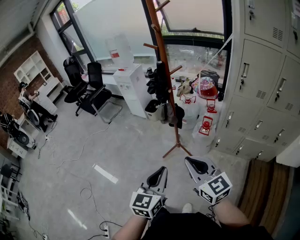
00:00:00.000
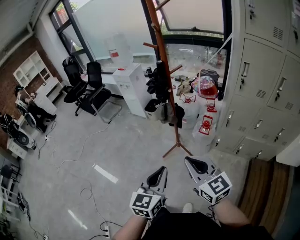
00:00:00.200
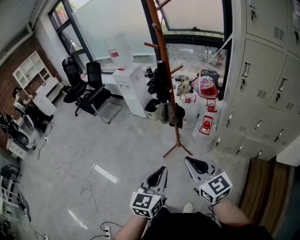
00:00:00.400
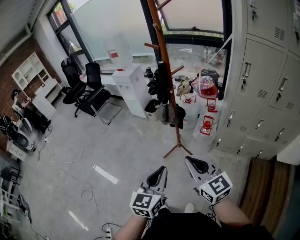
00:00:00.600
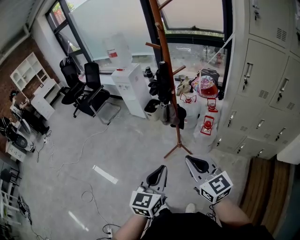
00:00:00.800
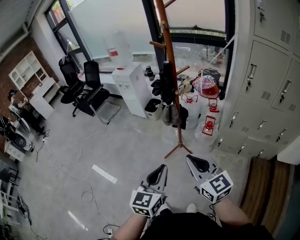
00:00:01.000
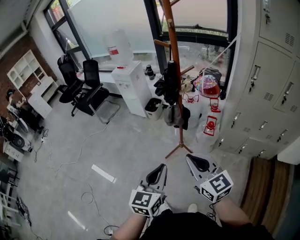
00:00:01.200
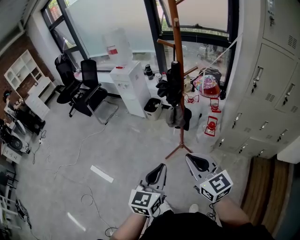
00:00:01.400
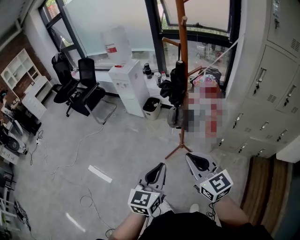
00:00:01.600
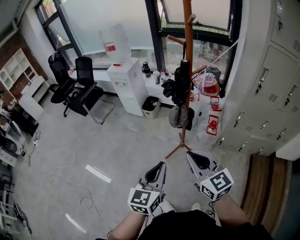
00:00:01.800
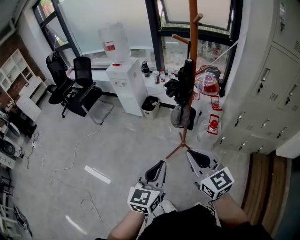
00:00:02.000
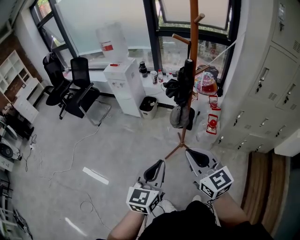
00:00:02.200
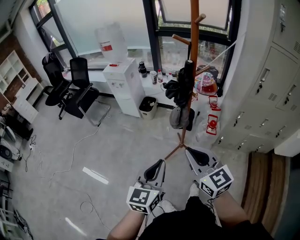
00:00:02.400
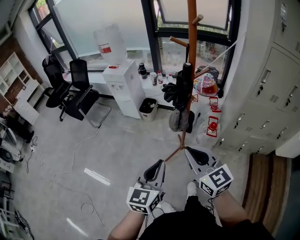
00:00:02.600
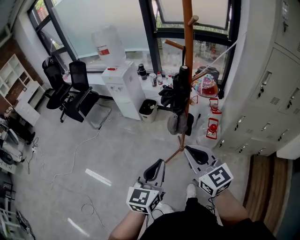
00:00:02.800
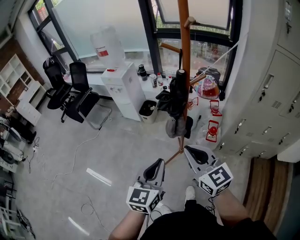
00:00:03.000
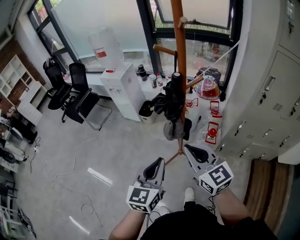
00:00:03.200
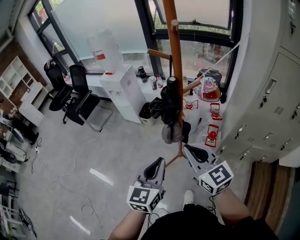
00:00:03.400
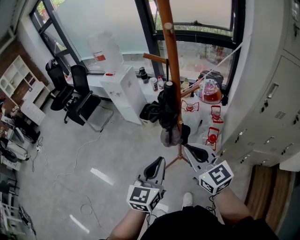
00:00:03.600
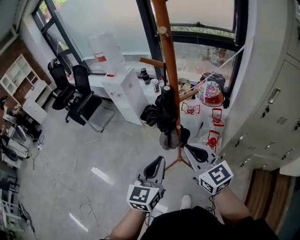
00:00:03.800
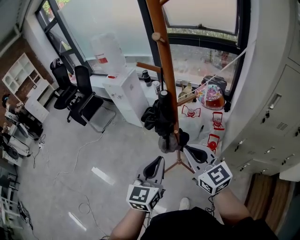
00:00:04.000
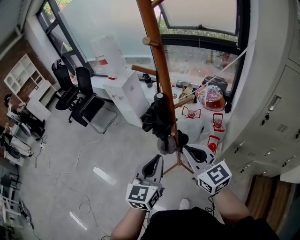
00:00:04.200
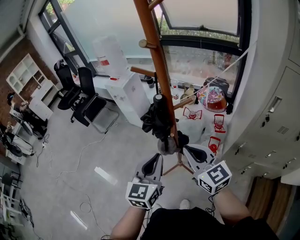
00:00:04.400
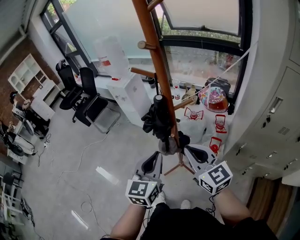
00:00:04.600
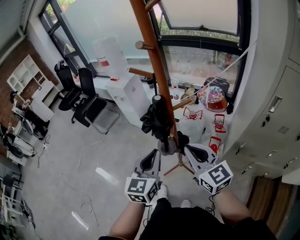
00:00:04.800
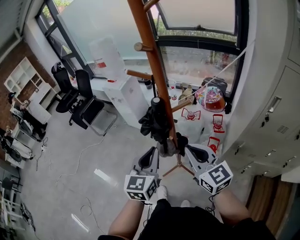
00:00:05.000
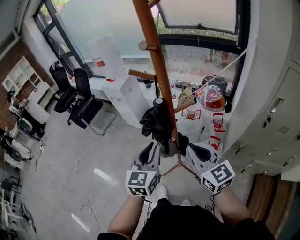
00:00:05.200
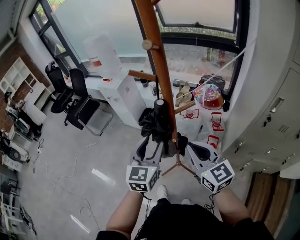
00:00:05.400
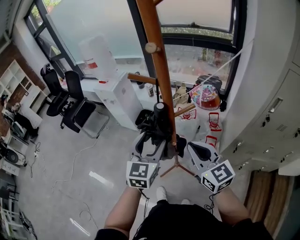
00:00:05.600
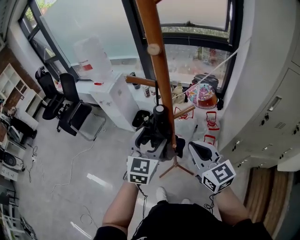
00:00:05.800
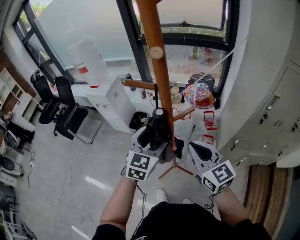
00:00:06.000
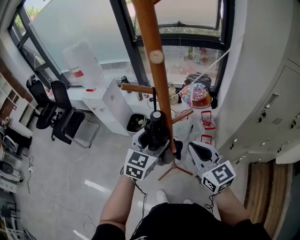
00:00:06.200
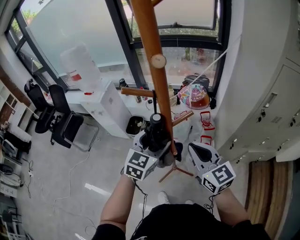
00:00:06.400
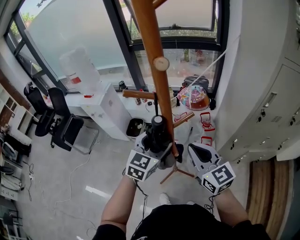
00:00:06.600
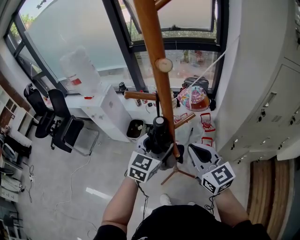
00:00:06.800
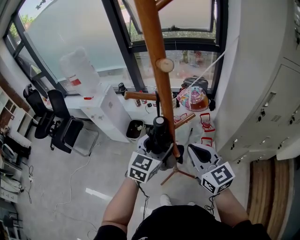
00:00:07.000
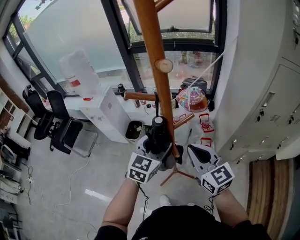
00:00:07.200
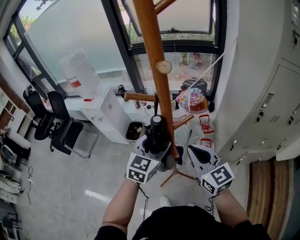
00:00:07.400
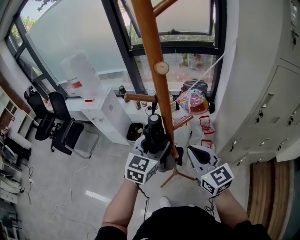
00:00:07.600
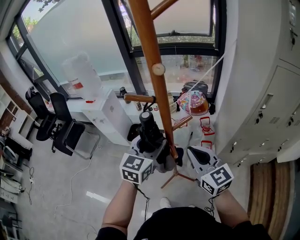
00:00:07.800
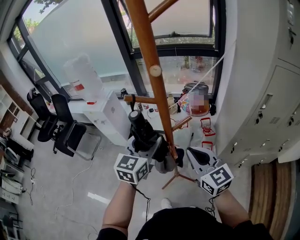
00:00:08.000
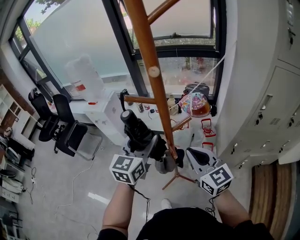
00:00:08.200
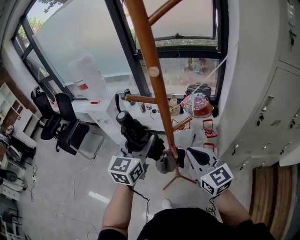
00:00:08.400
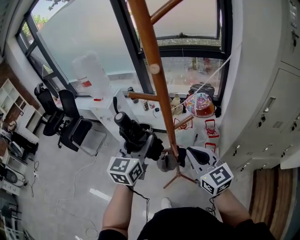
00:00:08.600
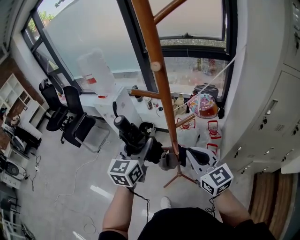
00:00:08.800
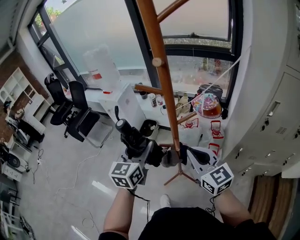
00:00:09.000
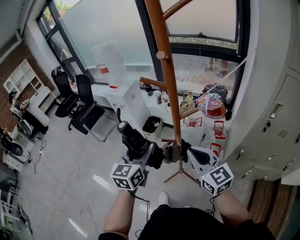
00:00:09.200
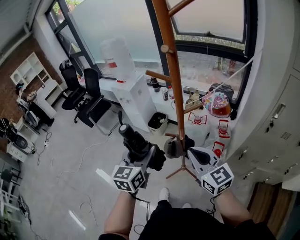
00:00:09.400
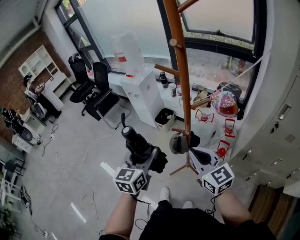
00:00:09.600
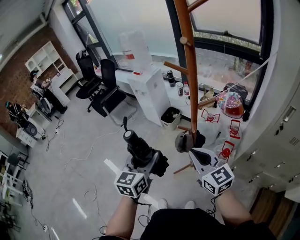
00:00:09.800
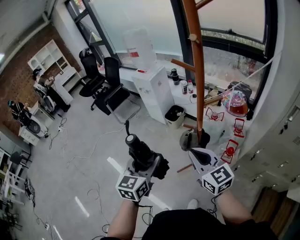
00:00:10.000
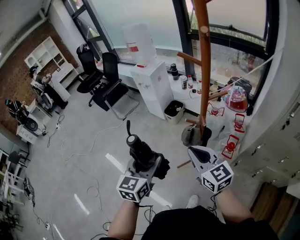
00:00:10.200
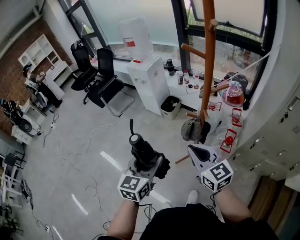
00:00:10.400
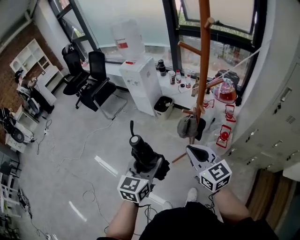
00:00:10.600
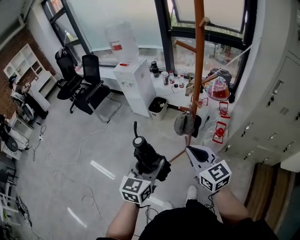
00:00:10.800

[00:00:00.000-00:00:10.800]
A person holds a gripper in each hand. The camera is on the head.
00:00:00.000 to 00:00:01.600: Both grippers travel together forward and to the left, roughly 15 cm.
00:00:01.600 to 00:00:03.000: Both grippers travel together forward, about 10 cm.
00:00:03.000 to 00:00:04.600: The right gripper moves to the right and forward, some 15 cm; the left gripper goes some 15 cm forward and to the right.
00:00:04.600 to 00:00:06.200: The right gripper goes some 5 cm forward. Meanwhile the left gripper travels forward by roughly 15 cm, rotates about 30 degrees, and opens up.
00:00:06.200 to 00:00:07.800: The grippers stay close to where they were, moving slightly.
00:00:07.800 to 00:00:09.200: The left gripper heads backward and to the left, covering approximately 10 cm, and turns by about 30 degrees.
00:00:09.200 to 00:00:10.800: The right gripper shifts roughly 20 cm to the left and backward. The left gripper moves backward and to the left, approximately 20 cm.

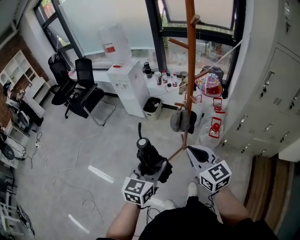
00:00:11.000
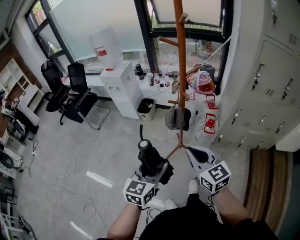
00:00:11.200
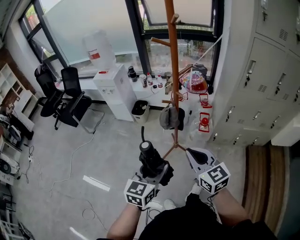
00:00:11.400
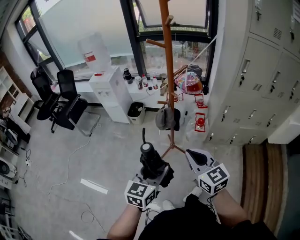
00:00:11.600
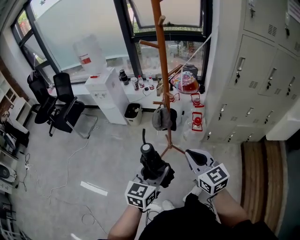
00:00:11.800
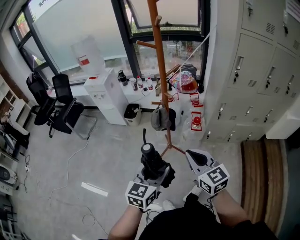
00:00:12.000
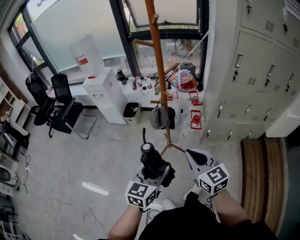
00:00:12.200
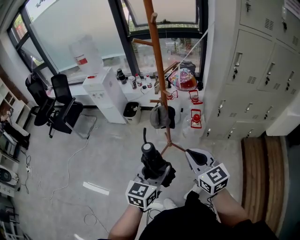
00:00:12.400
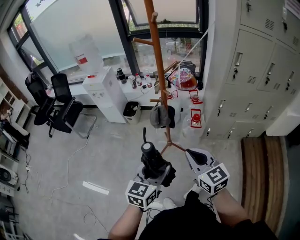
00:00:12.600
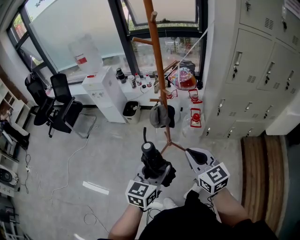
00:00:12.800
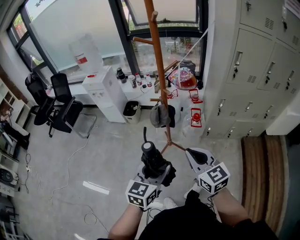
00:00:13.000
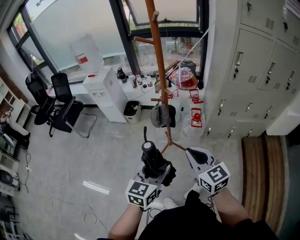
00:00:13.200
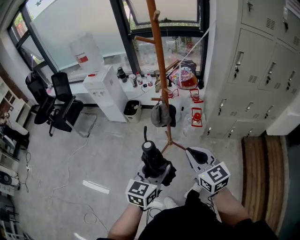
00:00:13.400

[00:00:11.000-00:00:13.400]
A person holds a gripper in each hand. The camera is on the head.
00:00:11.000 to 00:00:12.200: The left gripper heads to the right, covering approximately 5 cm. Meanwhile the right gripper goes roughly 10 cm to the right and backward.
00:00:12.200 to 00:00:13.400: Both grippers stay put.

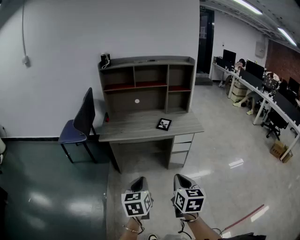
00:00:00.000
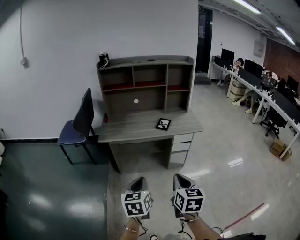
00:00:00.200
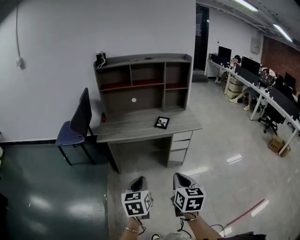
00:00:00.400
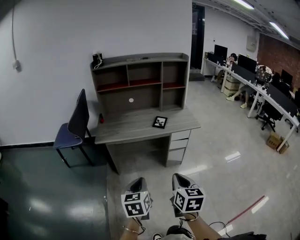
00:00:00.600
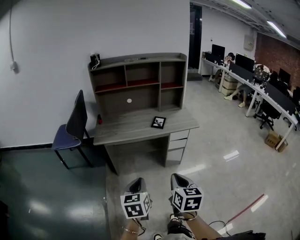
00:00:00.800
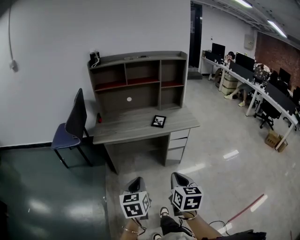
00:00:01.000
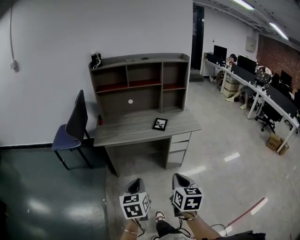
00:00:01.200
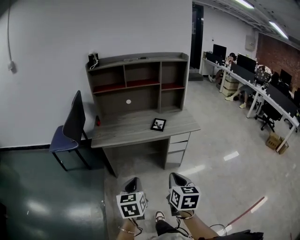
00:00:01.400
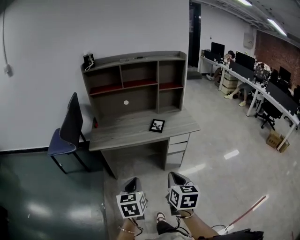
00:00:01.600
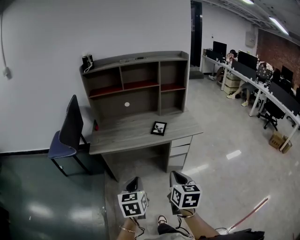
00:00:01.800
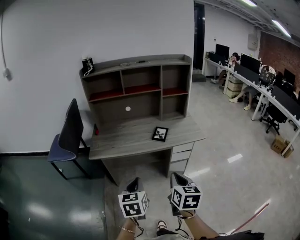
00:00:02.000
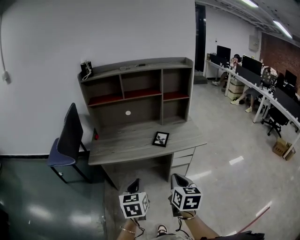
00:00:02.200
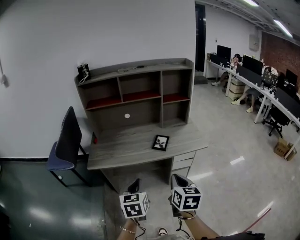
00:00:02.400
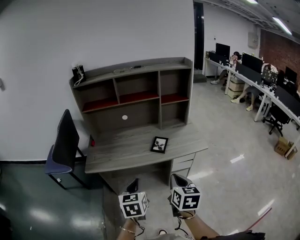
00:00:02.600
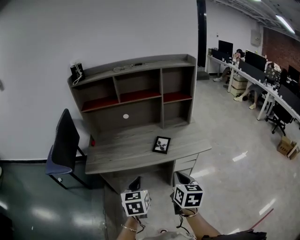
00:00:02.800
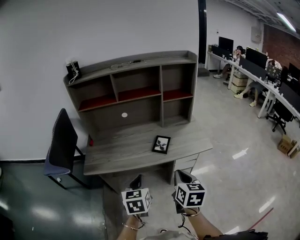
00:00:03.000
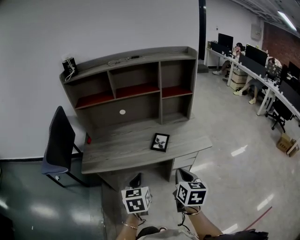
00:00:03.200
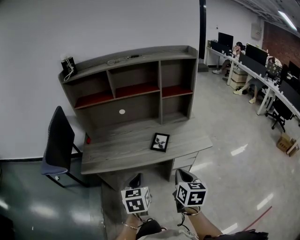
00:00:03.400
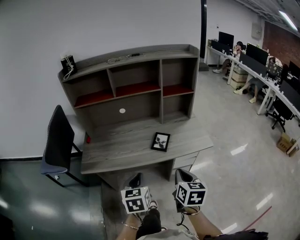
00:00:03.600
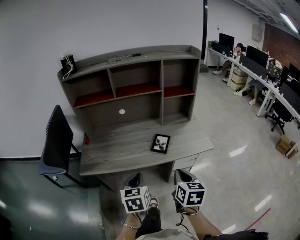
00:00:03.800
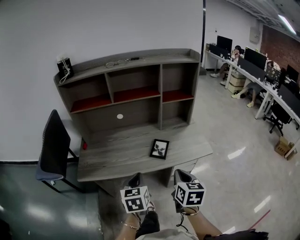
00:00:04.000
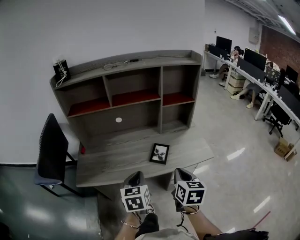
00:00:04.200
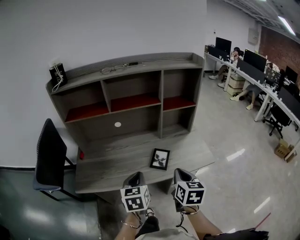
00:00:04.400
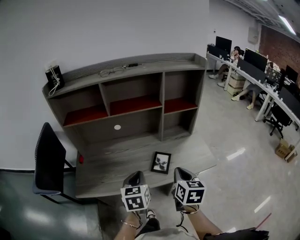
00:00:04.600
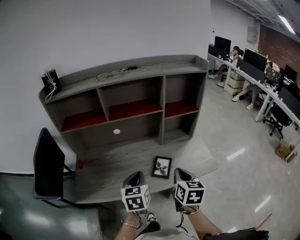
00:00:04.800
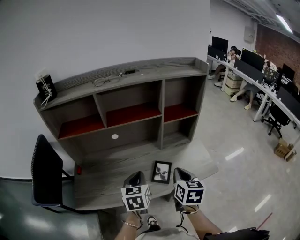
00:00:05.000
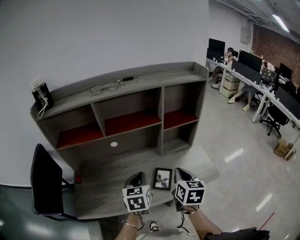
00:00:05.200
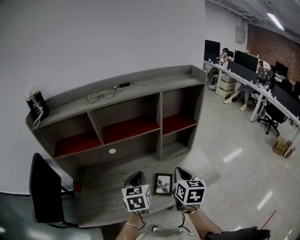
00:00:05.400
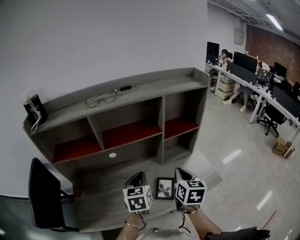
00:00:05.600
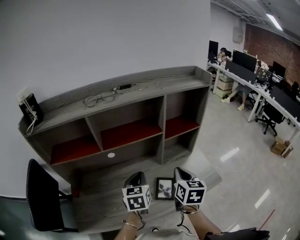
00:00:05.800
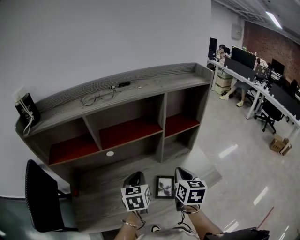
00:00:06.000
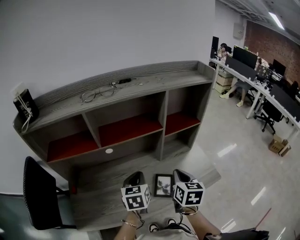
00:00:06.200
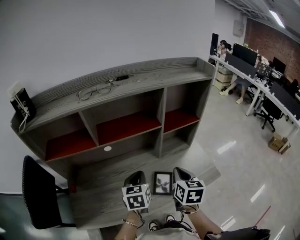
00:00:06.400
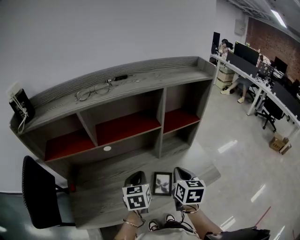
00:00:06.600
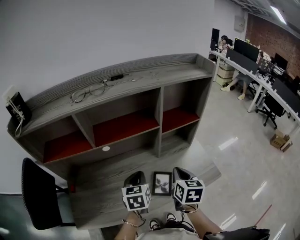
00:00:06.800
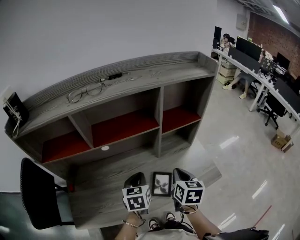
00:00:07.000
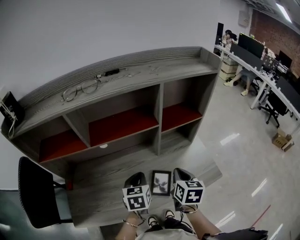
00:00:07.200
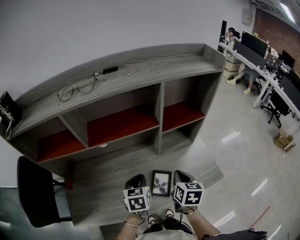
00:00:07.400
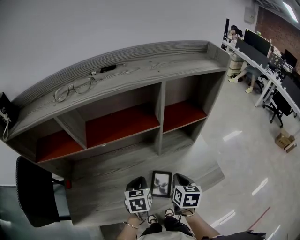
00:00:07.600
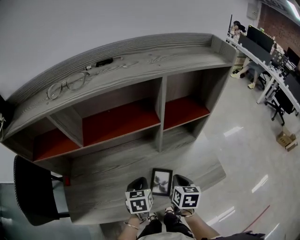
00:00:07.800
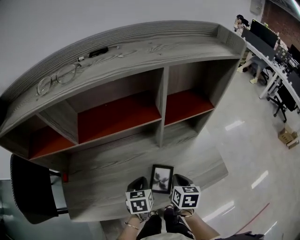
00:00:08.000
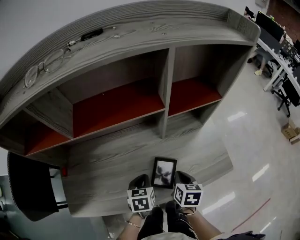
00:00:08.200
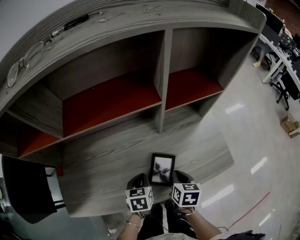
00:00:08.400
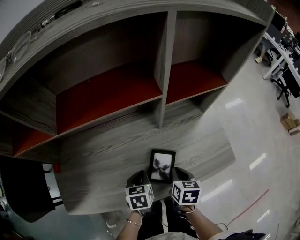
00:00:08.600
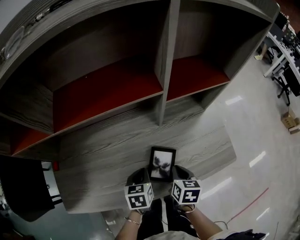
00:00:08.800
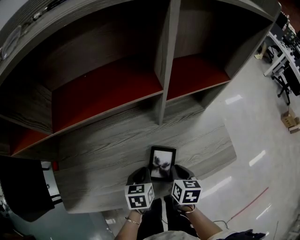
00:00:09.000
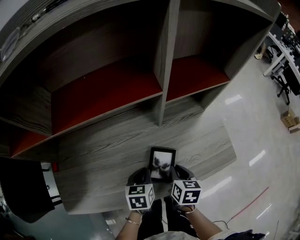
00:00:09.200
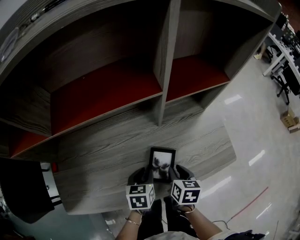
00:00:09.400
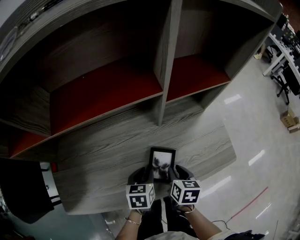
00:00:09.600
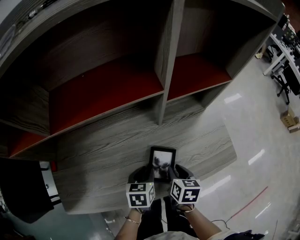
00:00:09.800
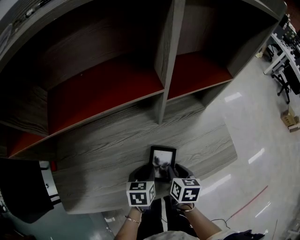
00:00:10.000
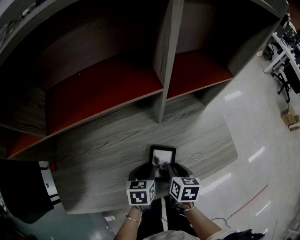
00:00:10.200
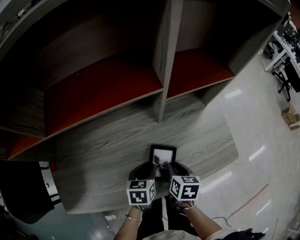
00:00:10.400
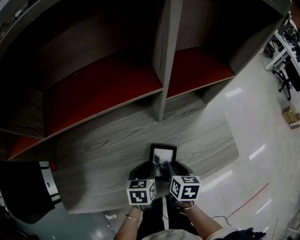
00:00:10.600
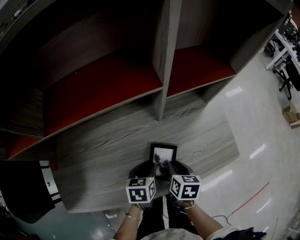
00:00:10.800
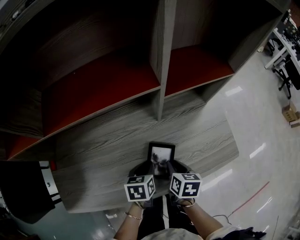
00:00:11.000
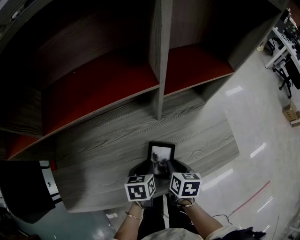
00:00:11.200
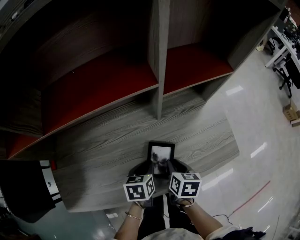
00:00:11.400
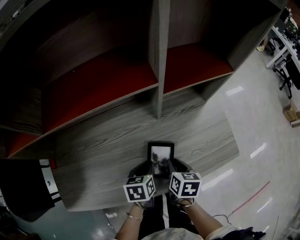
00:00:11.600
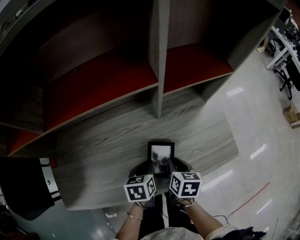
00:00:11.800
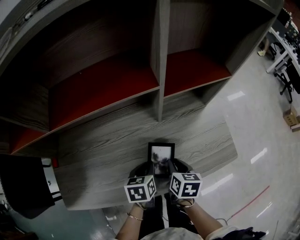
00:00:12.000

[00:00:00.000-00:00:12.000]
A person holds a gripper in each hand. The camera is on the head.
00:00:00.000 to 00:00:01.600: The grippers both shift forward by roughly 10 cm.
00:00:01.600 to 00:00:03.000: The two grippers go roughly 25 cm forward.
00:00:03.000 to 00:00:04.400: The grippers both shift forward by approximately 15 cm.
00:00:04.400 to 00:00:06.000: The two grippers go about 20 cm forward.
00:00:06.000 to 00:00:07.600: Both grippers move downward, about 10 cm.
00:00:07.600 to 00:00:09.000: Both grippers move downward, about 15 cm.
00:00:09.000 to 00:00:10.400: The left gripper opens up.
00:00:10.400 to 00:00:12.000: The grippers stay close to where they were, moving slightly.
